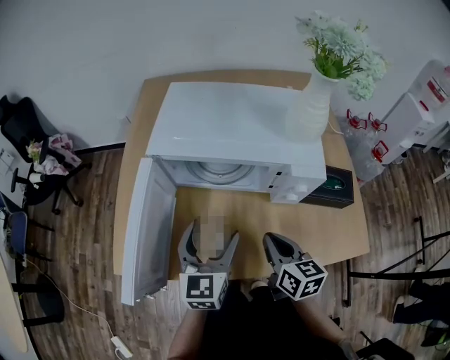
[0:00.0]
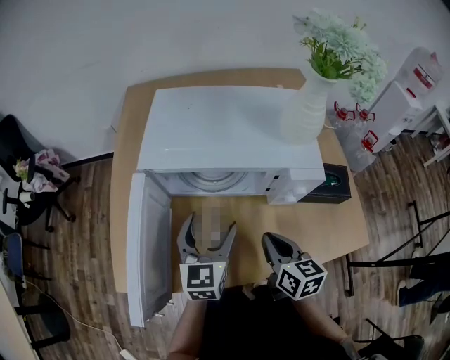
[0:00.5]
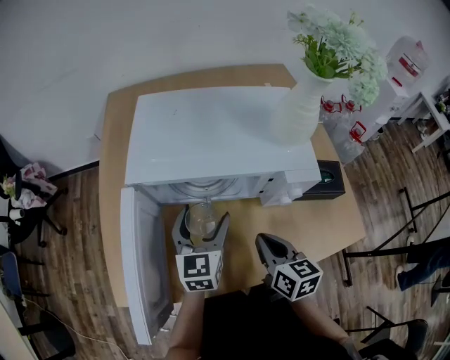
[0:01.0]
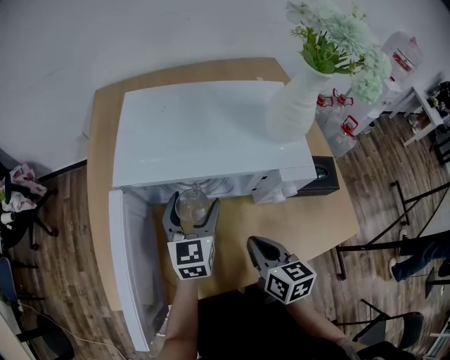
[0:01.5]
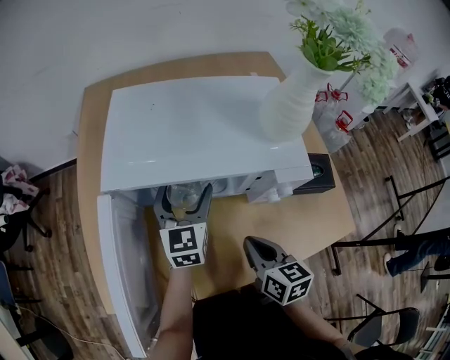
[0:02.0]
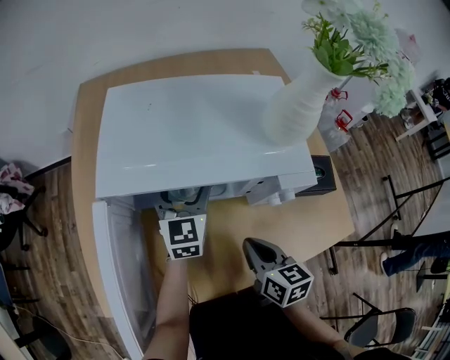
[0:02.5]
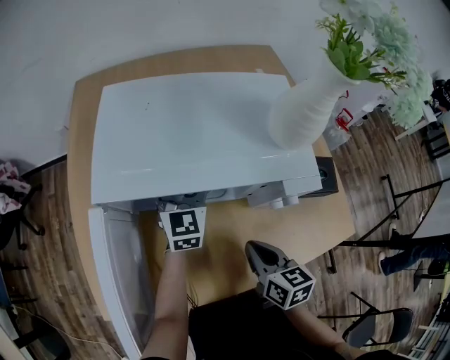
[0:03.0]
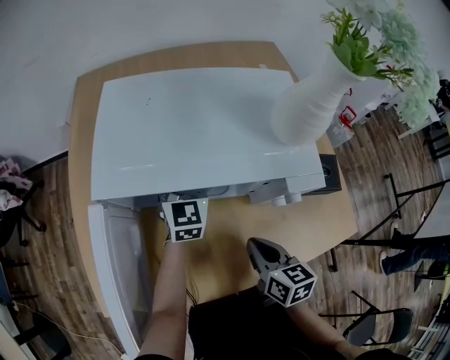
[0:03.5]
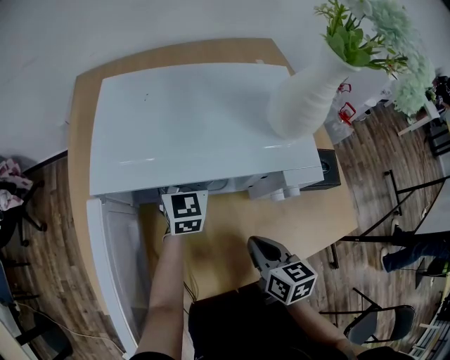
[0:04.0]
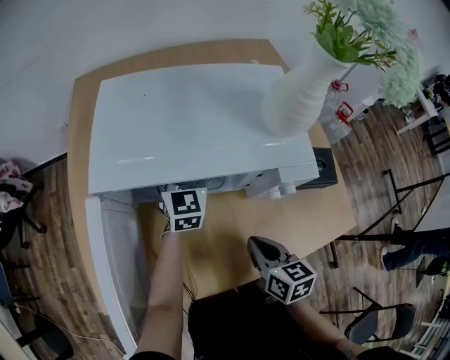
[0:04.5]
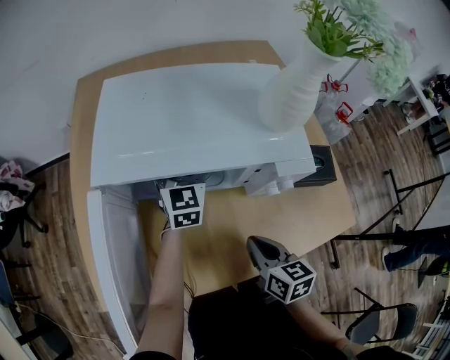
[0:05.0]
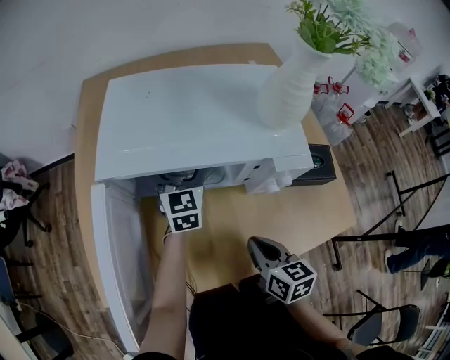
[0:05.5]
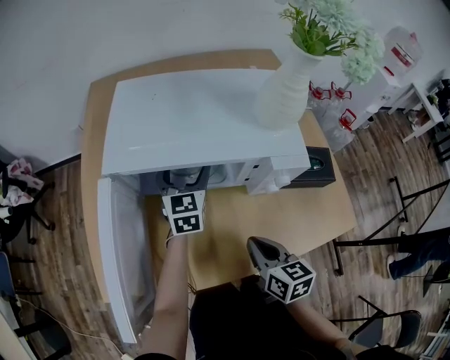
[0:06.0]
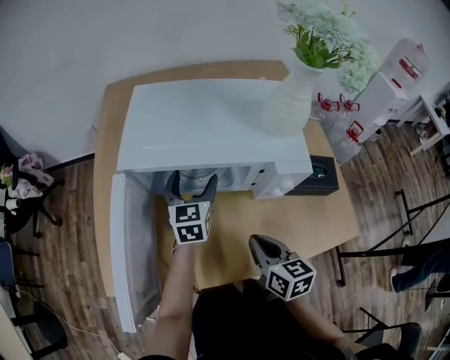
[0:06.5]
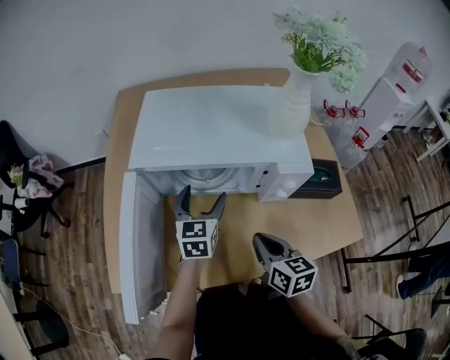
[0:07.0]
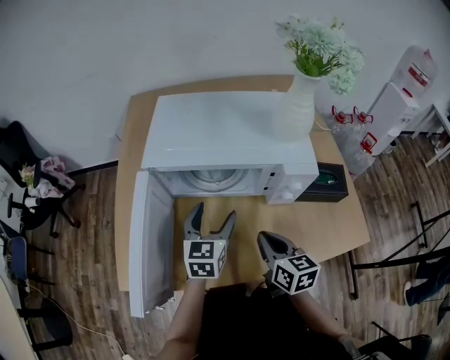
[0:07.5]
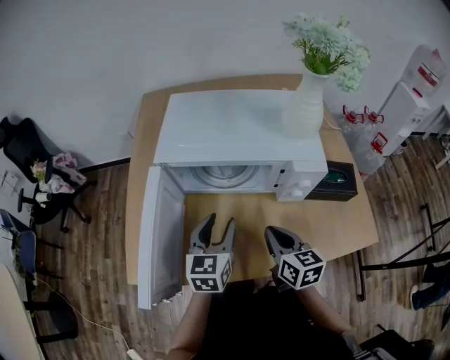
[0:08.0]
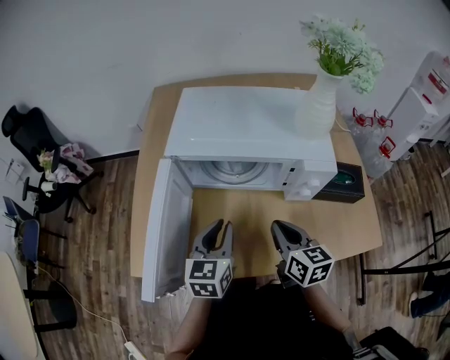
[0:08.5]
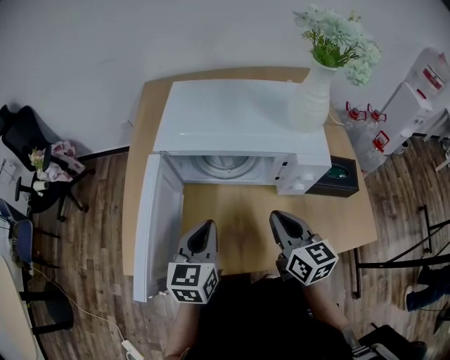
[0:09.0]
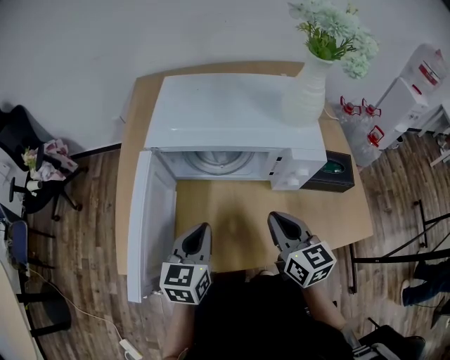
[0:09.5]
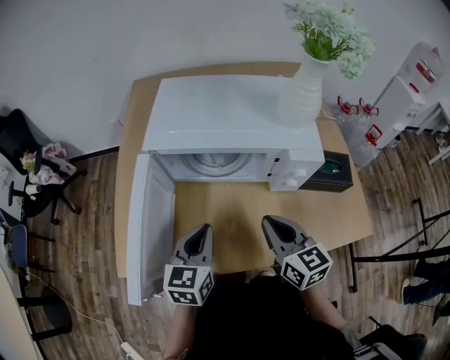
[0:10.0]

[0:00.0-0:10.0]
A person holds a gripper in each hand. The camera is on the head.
0.0 to 2.0 s: The left gripper shifts approximately 15 cm forward.
2.0 to 4.0 s: The left gripper shifts approximately 10 cm forward.
4.0 to 6.0 s: The grippers move only a little.
6.0 to 8.0 s: The left gripper shifts about 20 cm backward, and closes.
8.0 to 10.0 s: The left gripper closes.

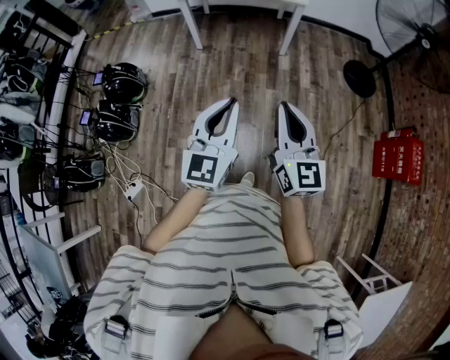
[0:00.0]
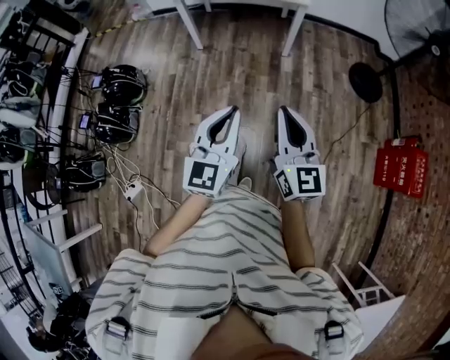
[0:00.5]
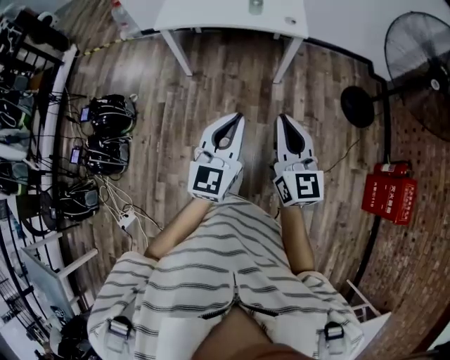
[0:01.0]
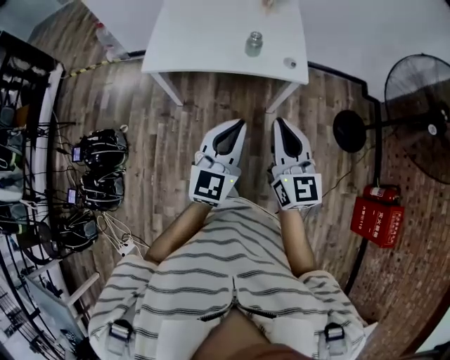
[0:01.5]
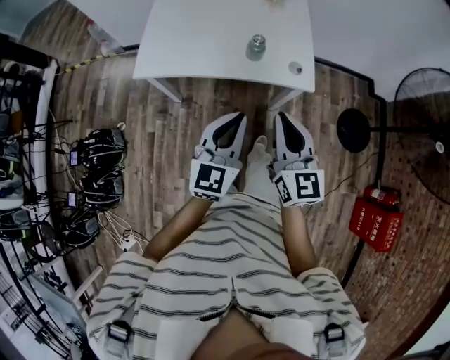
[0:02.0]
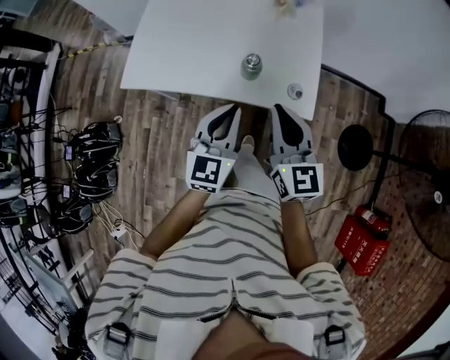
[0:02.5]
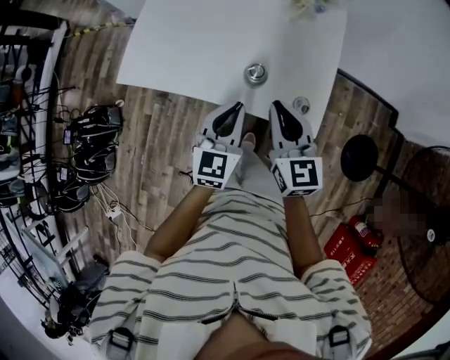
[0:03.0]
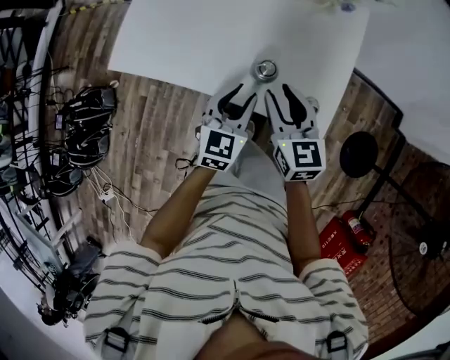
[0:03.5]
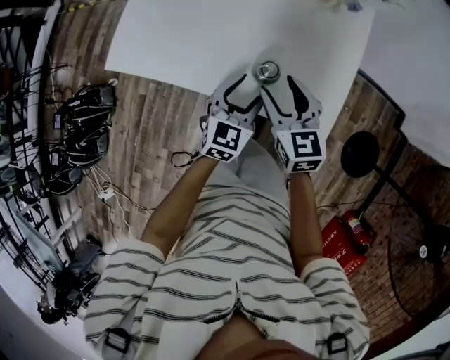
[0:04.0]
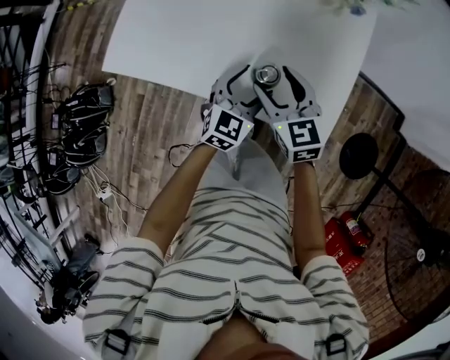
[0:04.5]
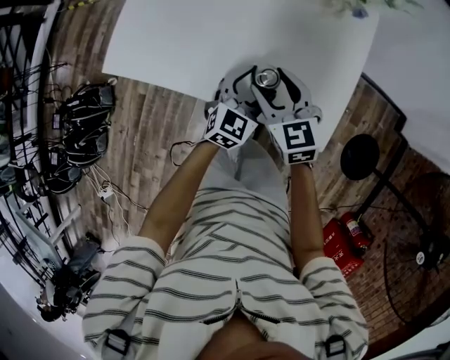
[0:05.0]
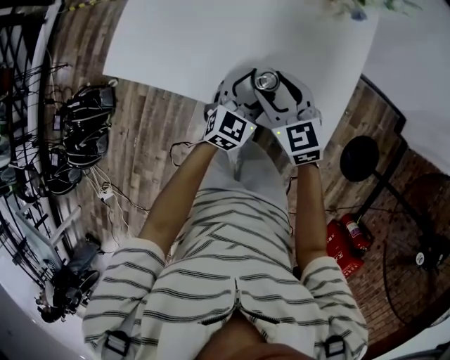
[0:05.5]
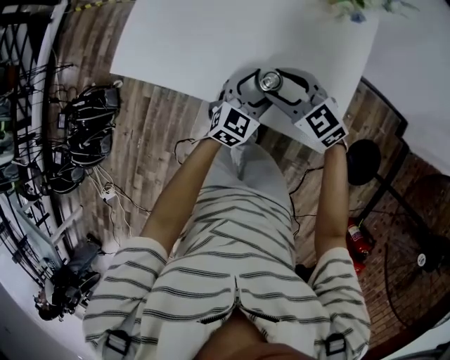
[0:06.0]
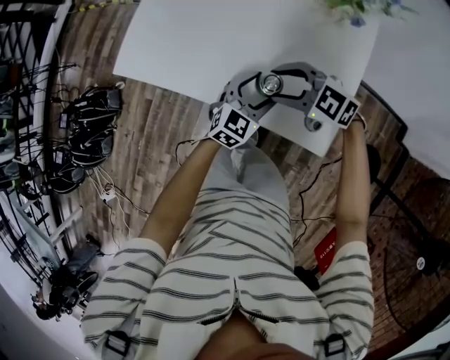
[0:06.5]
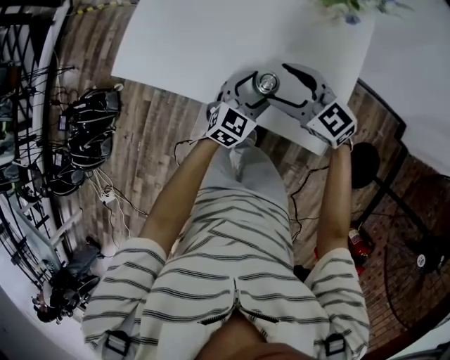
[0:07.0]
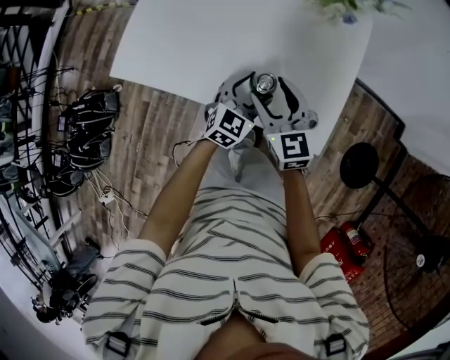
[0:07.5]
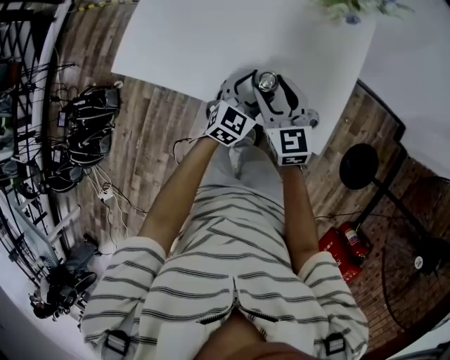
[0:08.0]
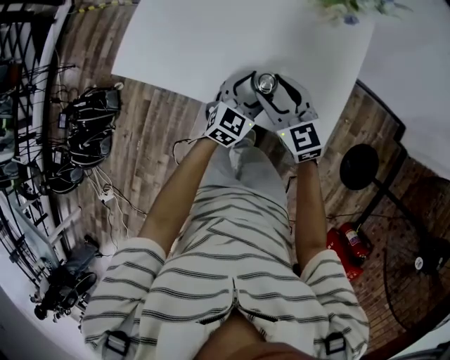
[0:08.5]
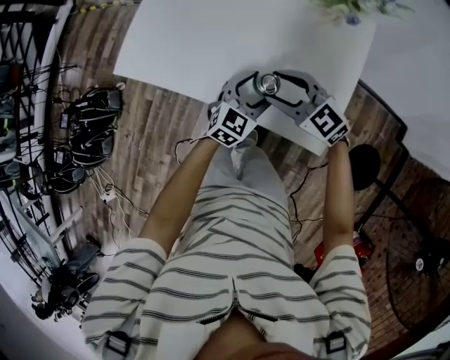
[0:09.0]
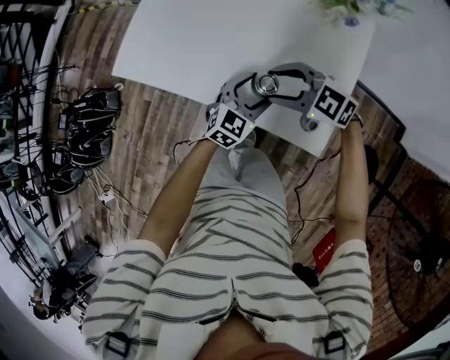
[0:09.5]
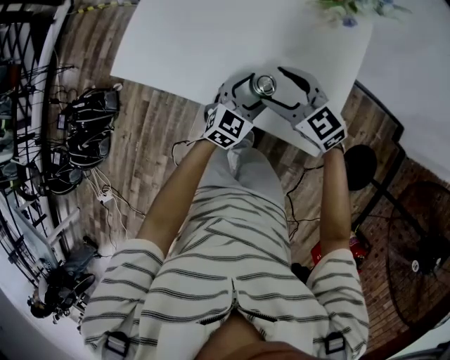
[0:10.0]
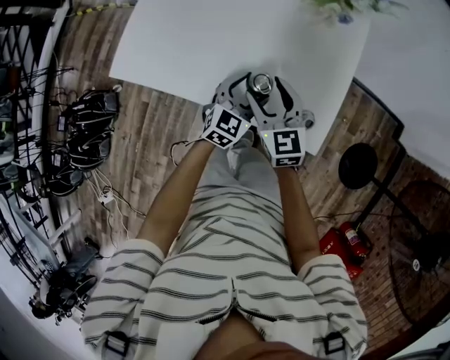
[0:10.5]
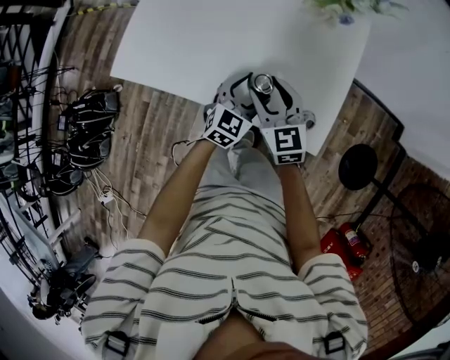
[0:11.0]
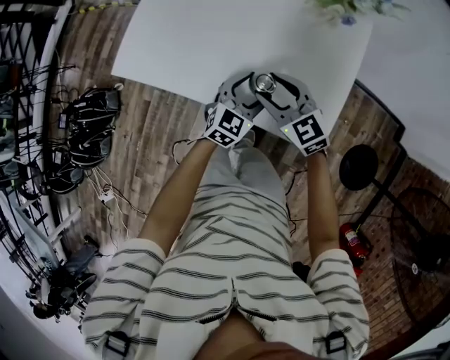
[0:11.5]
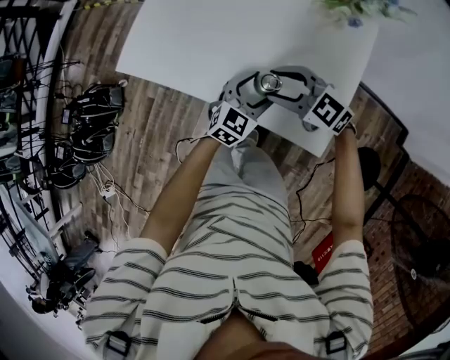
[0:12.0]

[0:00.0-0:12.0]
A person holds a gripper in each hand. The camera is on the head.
0.0 to 2.0 s: Both grippers are carried forward, approximately 60 cm.
2.0 to 4.0 s: The two grippers go roughly 35 cm forward and downward. The left gripper opens its fingers. The right gripper swivels some 30 degrees, and opens its fingers.
4.0 to 6.0 s: The right gripper turns by some 40 degrees. The left gripper changes place by approximately 5 cm.
6.0 to 8.0 s: The right gripper changes its angle by about 40 degrees.
8.0 to 10.0 s: The right gripper changes its angle by about 30 degrees.

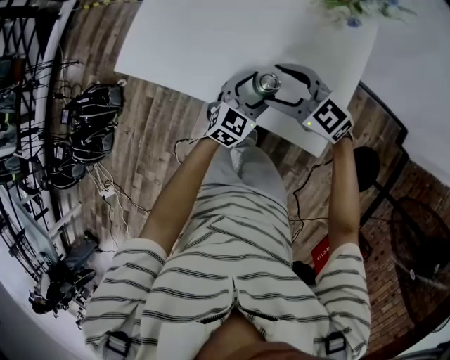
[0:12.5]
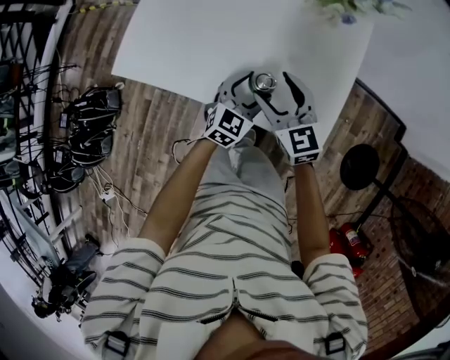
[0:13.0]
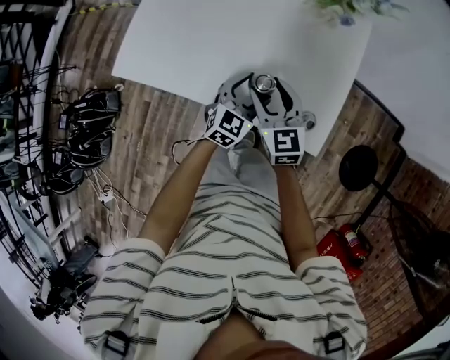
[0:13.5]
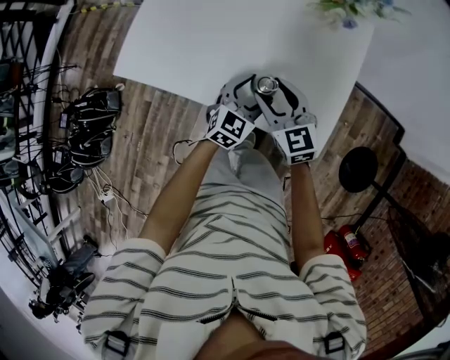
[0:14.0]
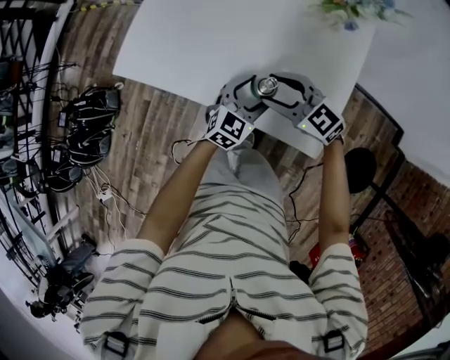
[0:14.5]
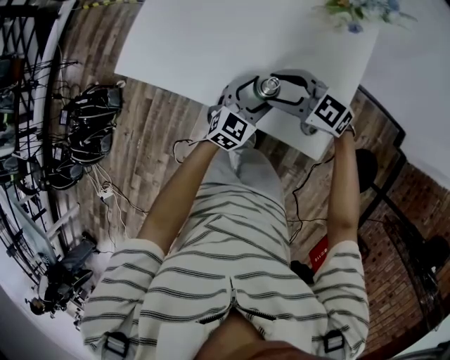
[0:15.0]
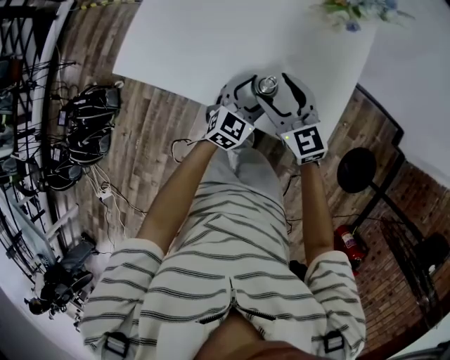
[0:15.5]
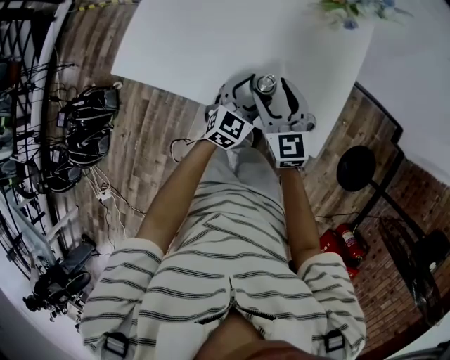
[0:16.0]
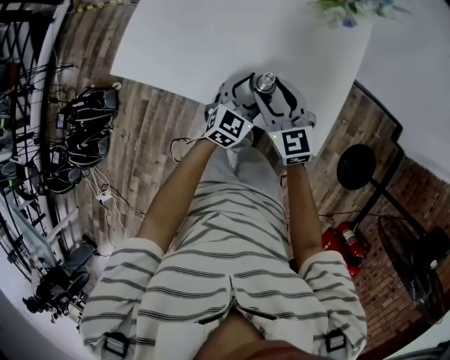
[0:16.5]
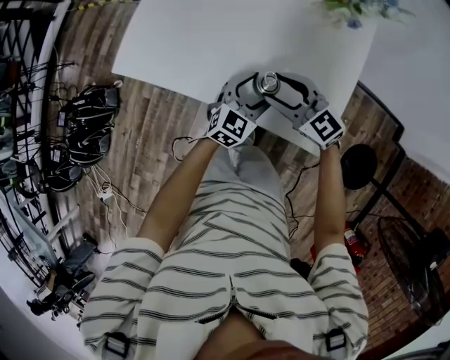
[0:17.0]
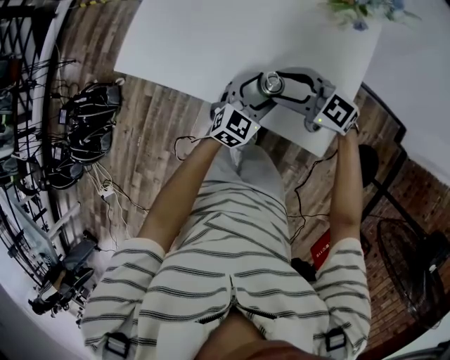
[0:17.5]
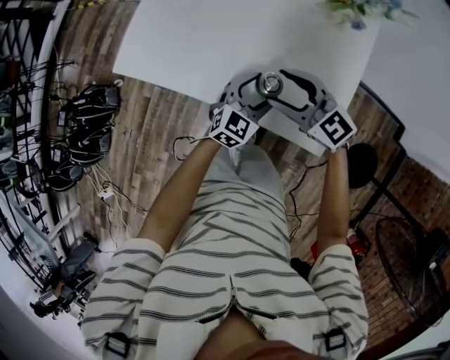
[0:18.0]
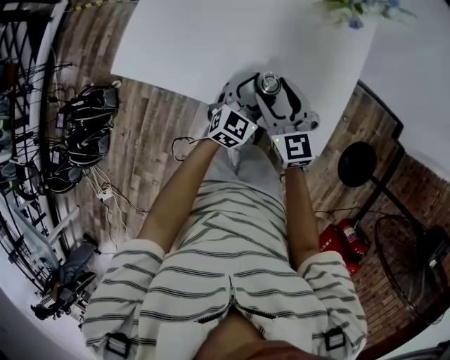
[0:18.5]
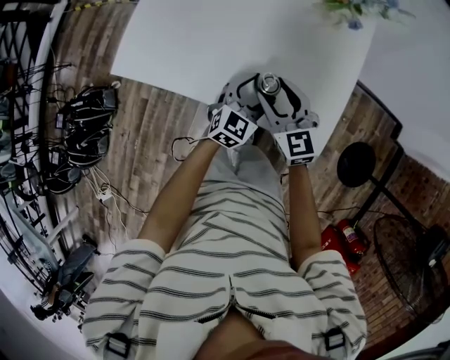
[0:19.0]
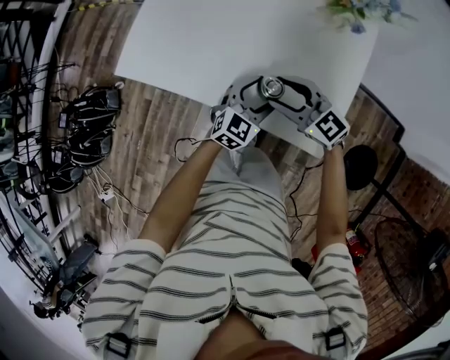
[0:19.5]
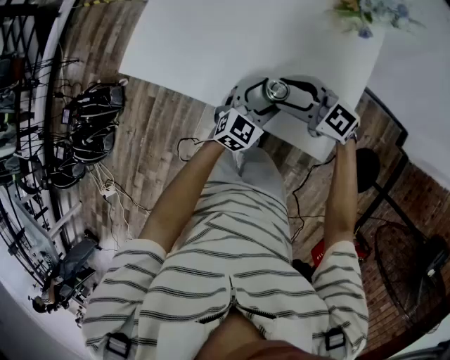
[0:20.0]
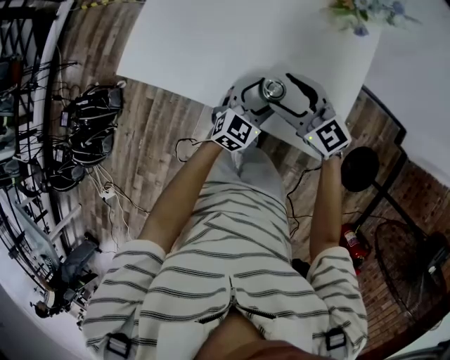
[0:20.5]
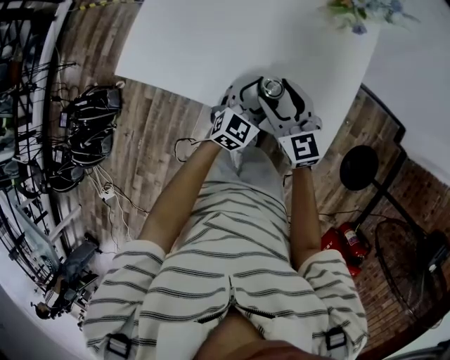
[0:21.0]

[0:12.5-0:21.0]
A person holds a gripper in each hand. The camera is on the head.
14.5 to 16.5 s: The right gripper changes its angle by roughly 40 degrees.
